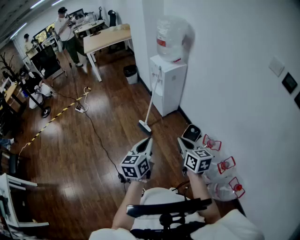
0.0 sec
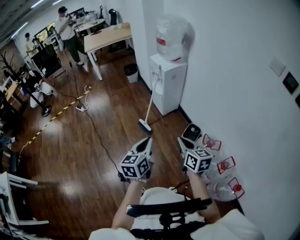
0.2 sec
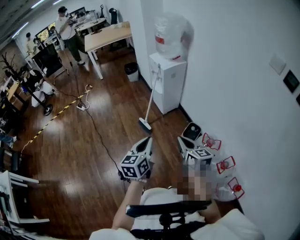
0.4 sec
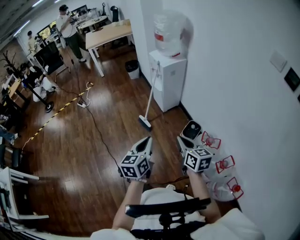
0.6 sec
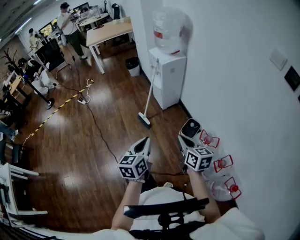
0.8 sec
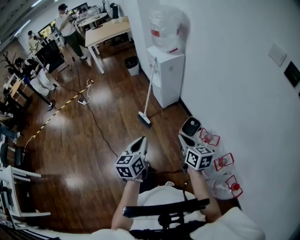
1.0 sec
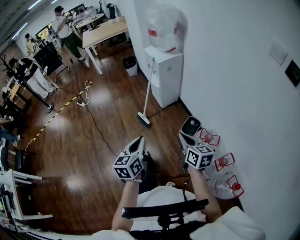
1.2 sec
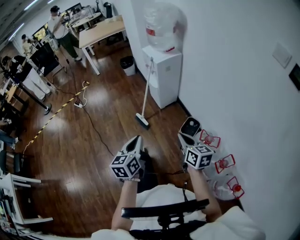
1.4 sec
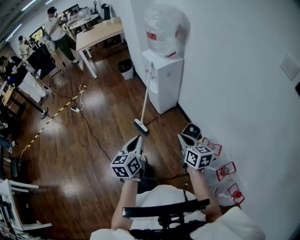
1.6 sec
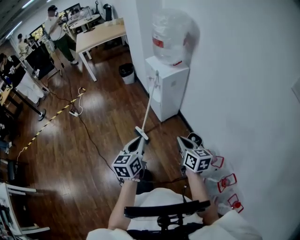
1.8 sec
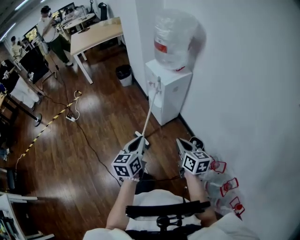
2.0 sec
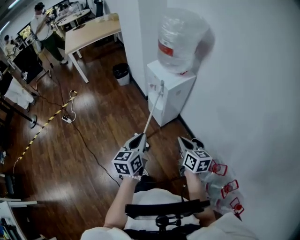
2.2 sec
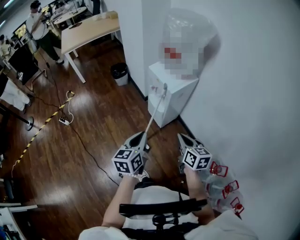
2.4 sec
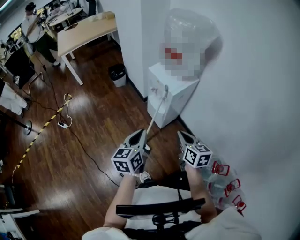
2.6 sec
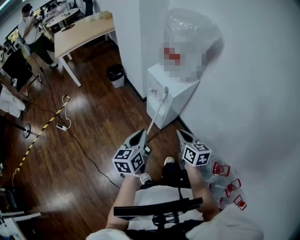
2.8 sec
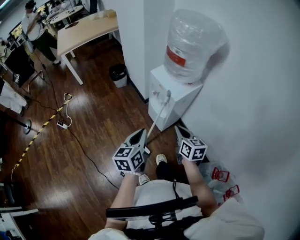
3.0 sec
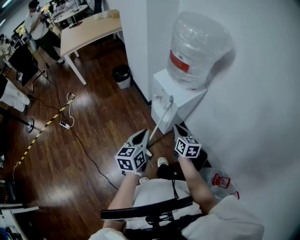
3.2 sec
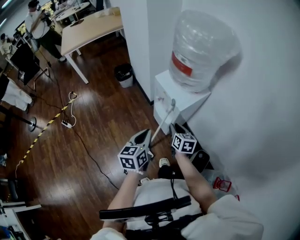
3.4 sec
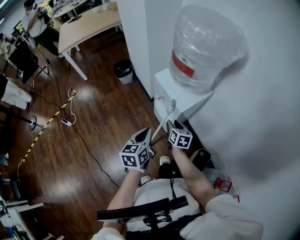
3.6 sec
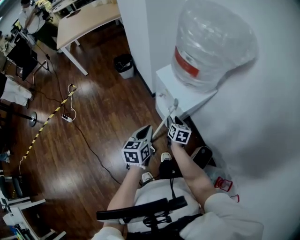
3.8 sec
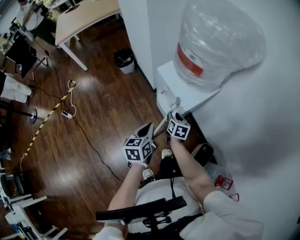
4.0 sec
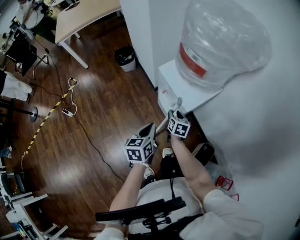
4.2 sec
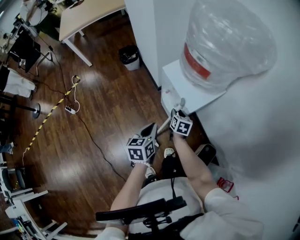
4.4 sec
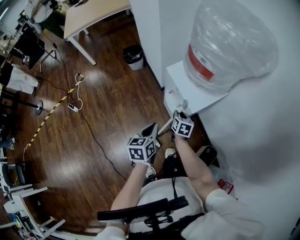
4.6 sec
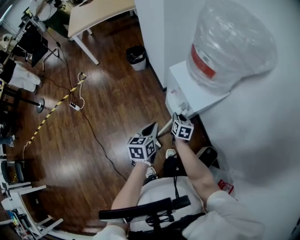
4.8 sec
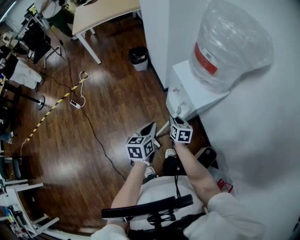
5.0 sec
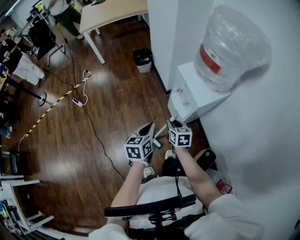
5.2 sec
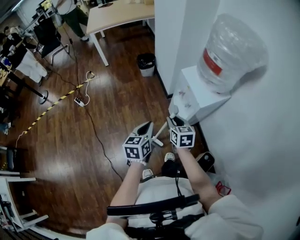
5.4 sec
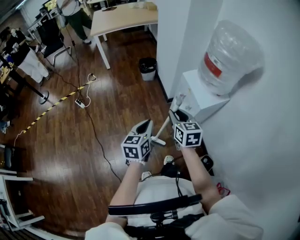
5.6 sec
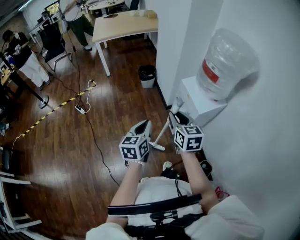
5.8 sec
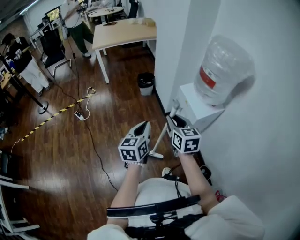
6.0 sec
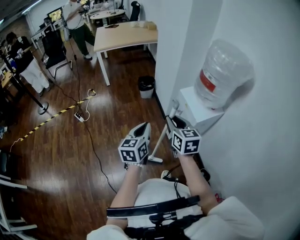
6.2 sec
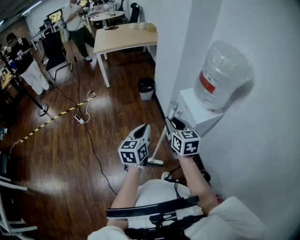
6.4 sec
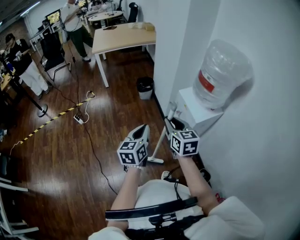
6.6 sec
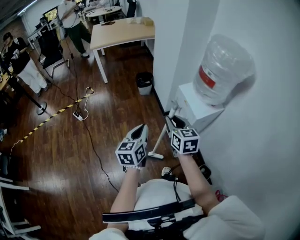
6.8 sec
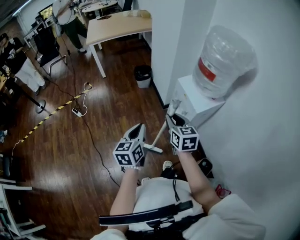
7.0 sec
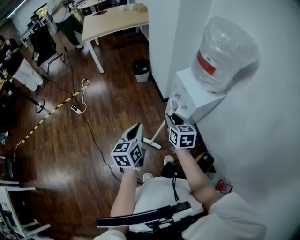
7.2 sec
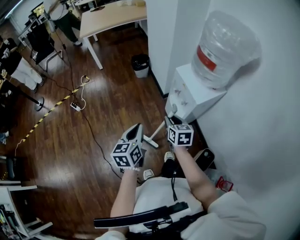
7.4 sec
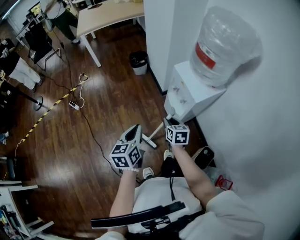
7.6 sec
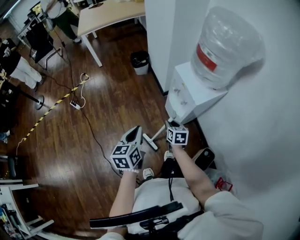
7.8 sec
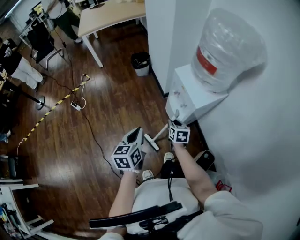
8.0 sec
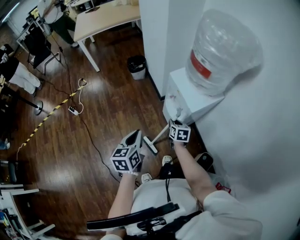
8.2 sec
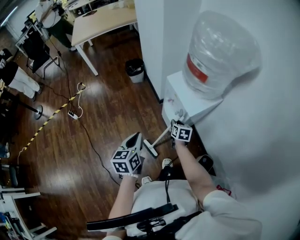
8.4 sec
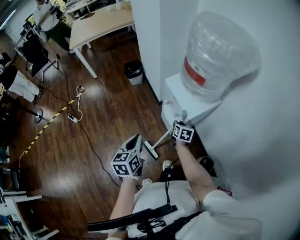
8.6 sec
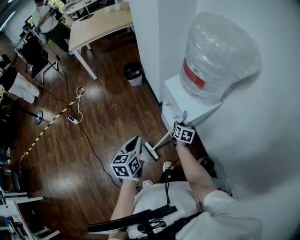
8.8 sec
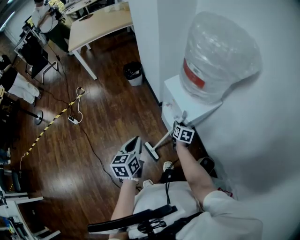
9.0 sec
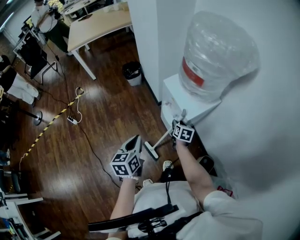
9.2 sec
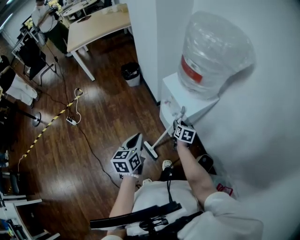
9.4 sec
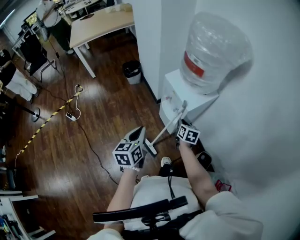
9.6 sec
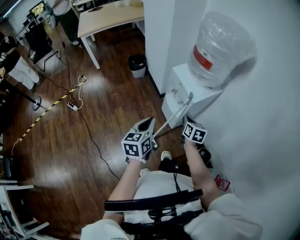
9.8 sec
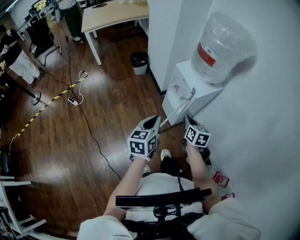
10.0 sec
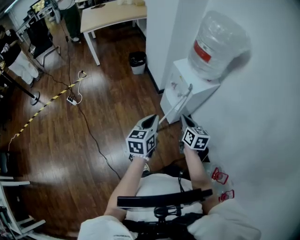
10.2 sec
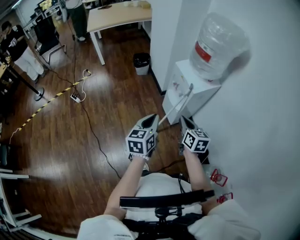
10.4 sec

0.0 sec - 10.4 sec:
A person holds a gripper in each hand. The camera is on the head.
0.0 sec - 1.4 sec: The right gripper shifts some 10 cm to the right; the left gripper moves approximately 5 cm.
1.4 sec - 3.0 sec: The pair of grippers is taken forward, roughly 50 cm.
3.0 sec - 4.4 sec: The left gripper goes approximately 20 cm forward and downward. The right gripper goes roughly 30 cm forward and downward, rotates approximately 20 degrees, and opens its fingers.
4.4 sec - 6.0 sec: The left gripper shifts some 25 cm upward, to the left and backward, and changes its angle by approximately 20 degrees. Meanwhile the right gripper moves upward, to the left and backward, roughly 40 cm, and changes its angle by approximately 40 degrees.
6.0 sec - 7.4 sec: The right gripper shifts some 15 cm downward. Meanwhile the left gripper is displaced downward by approximately 5 cm.
7.4 sec - 9.0 sec: The left gripper travels forward and to the right by some 10 cm; the right gripper travels downward, to the right and forward by roughly 25 cm, and turns by approximately 20 degrees.
9.0 sec - 10.4 sec: The left gripper heads backward and upward, covering approximately 15 cm; the right gripper moves backward and upward, approximately 35 cm, rotates approximately 20 degrees, and closes.

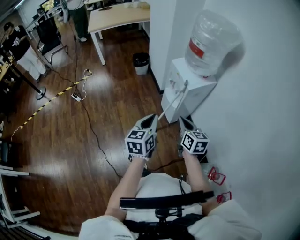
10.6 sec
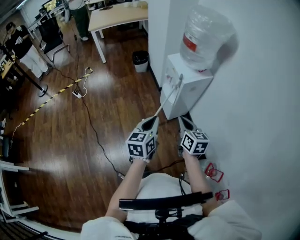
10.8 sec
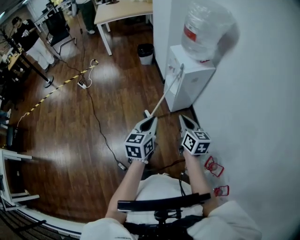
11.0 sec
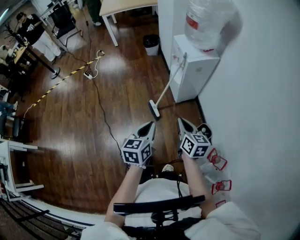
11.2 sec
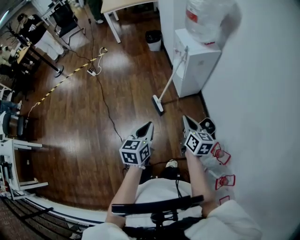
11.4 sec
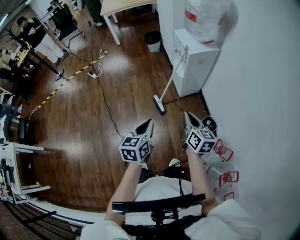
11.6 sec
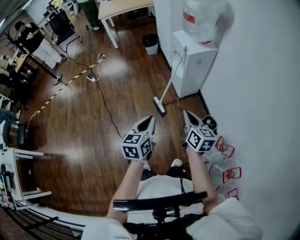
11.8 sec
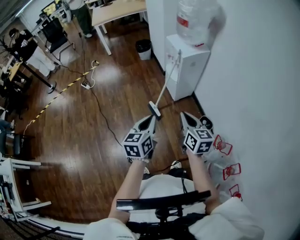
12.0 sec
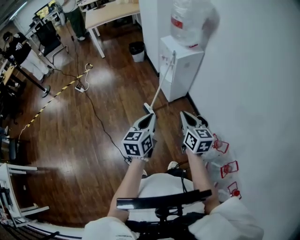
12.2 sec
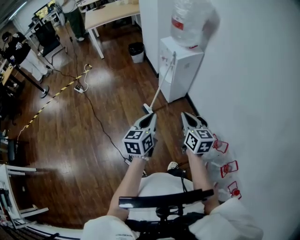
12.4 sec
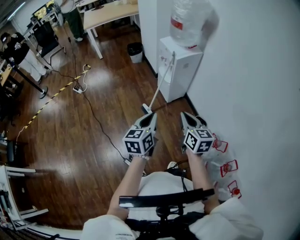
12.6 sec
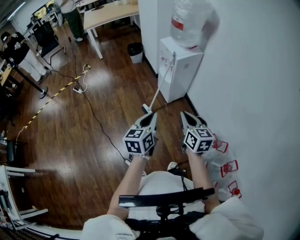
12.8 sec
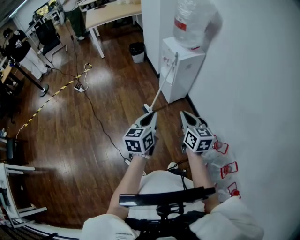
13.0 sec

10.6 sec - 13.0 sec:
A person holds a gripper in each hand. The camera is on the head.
10.6 sec - 11.8 sec: Both grippers move backward, some 25 cm.
11.8 sec - 13.0 sec: The right gripper shifts by some 5 cm.

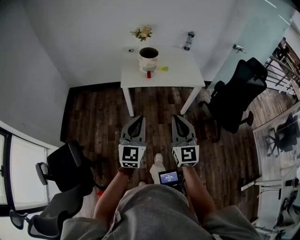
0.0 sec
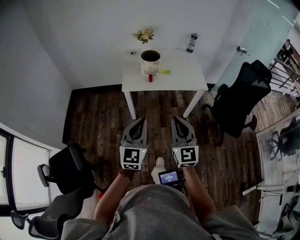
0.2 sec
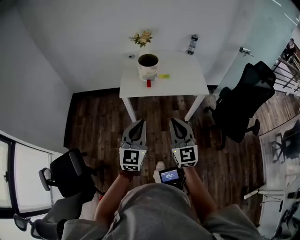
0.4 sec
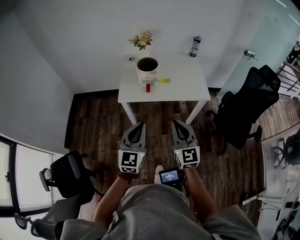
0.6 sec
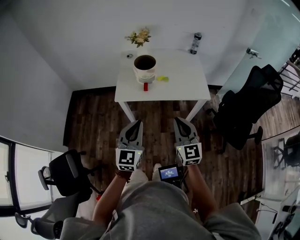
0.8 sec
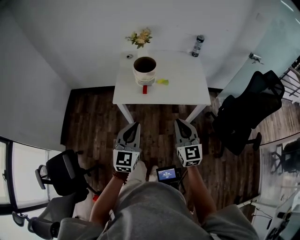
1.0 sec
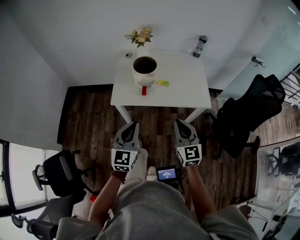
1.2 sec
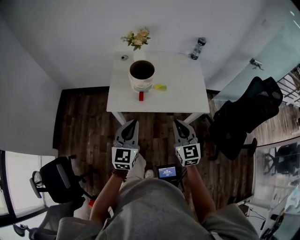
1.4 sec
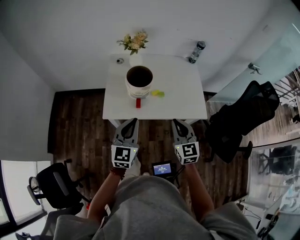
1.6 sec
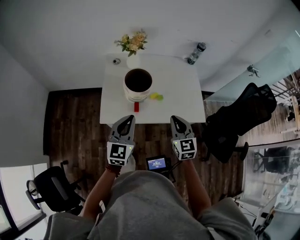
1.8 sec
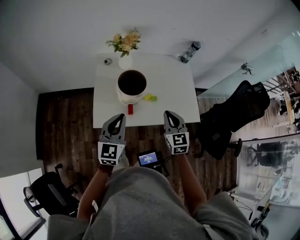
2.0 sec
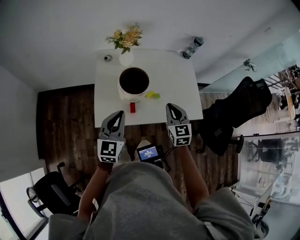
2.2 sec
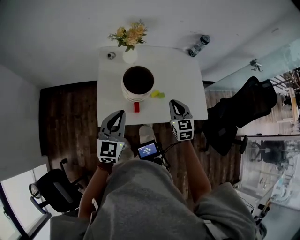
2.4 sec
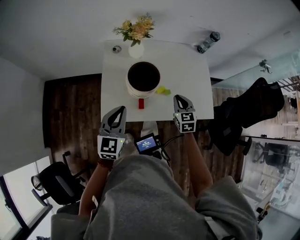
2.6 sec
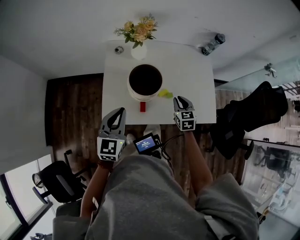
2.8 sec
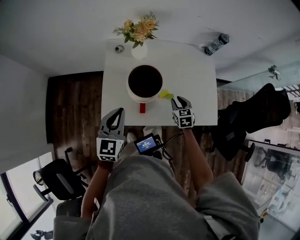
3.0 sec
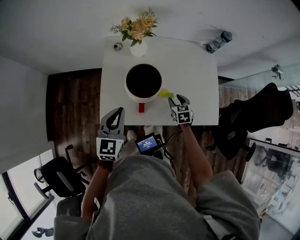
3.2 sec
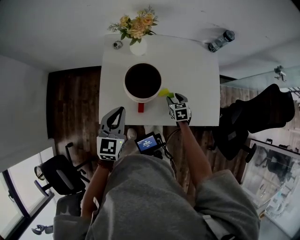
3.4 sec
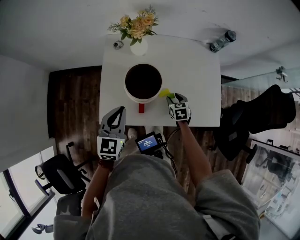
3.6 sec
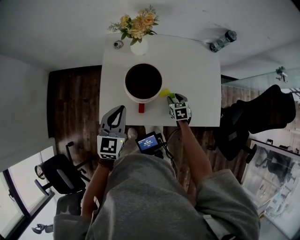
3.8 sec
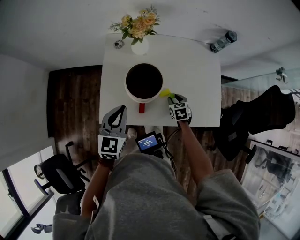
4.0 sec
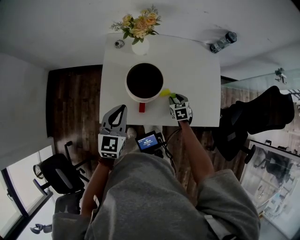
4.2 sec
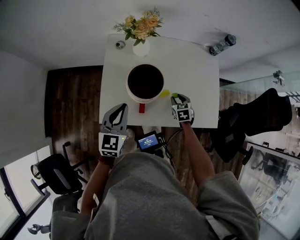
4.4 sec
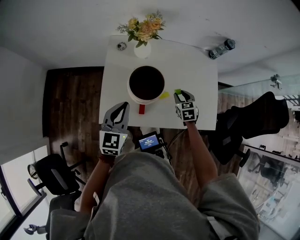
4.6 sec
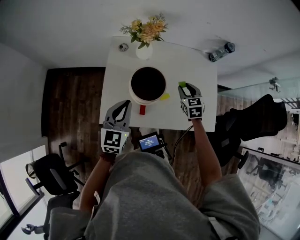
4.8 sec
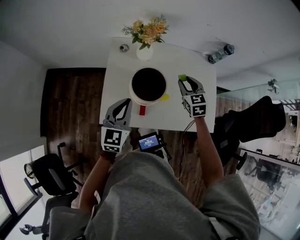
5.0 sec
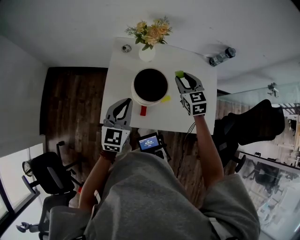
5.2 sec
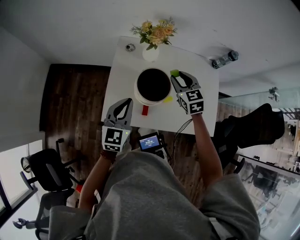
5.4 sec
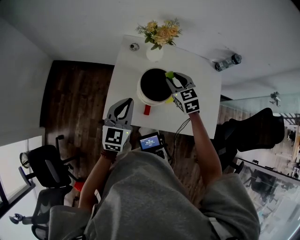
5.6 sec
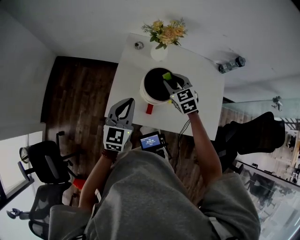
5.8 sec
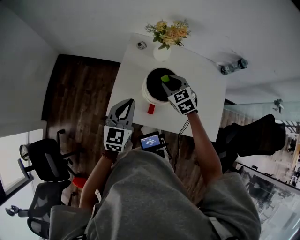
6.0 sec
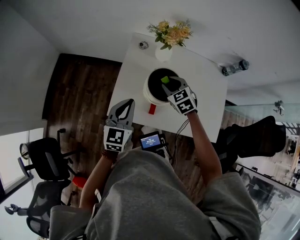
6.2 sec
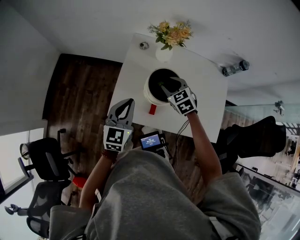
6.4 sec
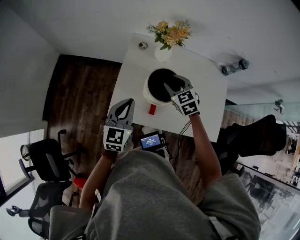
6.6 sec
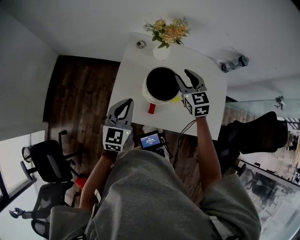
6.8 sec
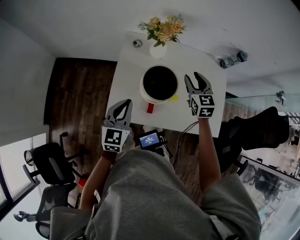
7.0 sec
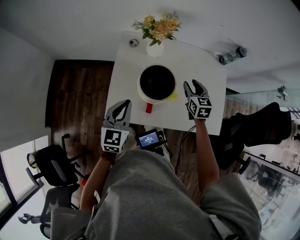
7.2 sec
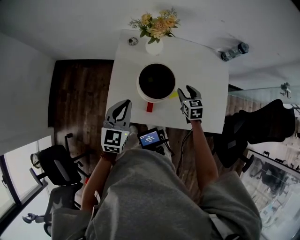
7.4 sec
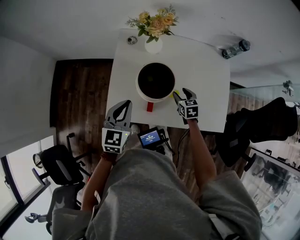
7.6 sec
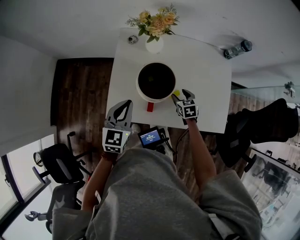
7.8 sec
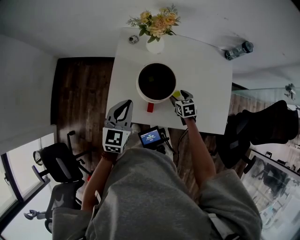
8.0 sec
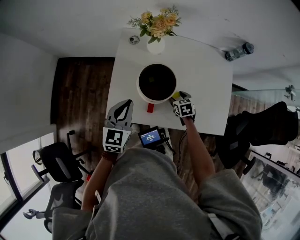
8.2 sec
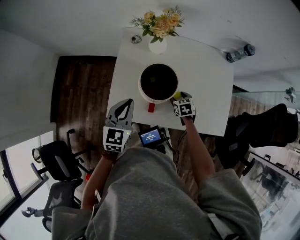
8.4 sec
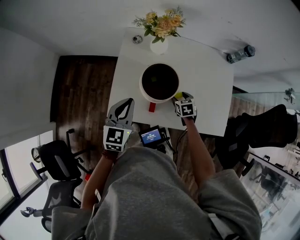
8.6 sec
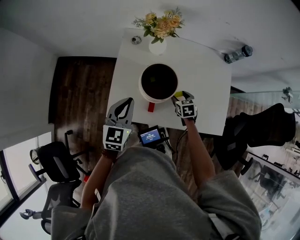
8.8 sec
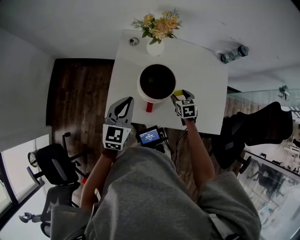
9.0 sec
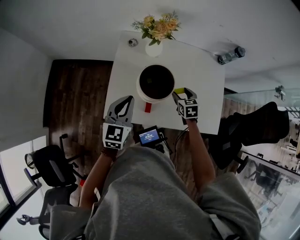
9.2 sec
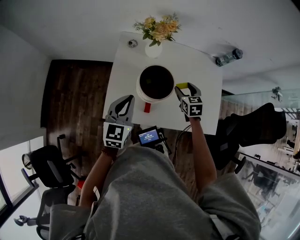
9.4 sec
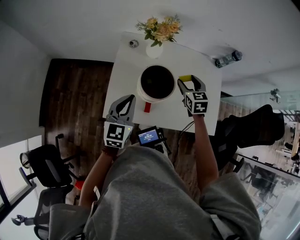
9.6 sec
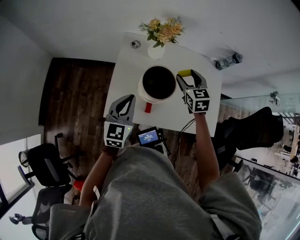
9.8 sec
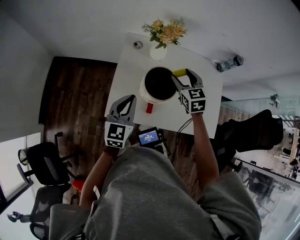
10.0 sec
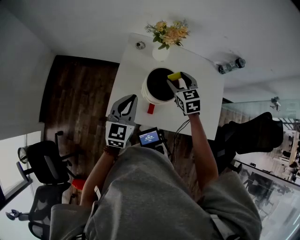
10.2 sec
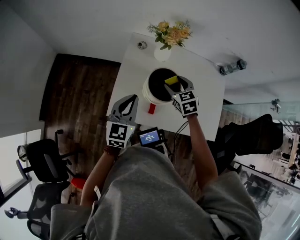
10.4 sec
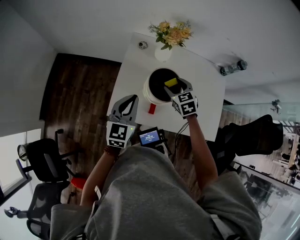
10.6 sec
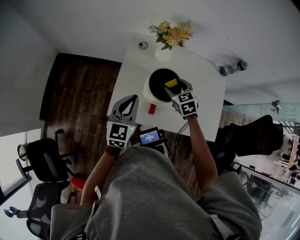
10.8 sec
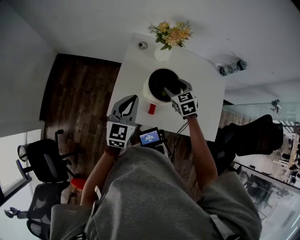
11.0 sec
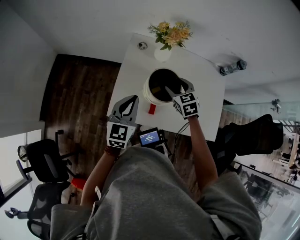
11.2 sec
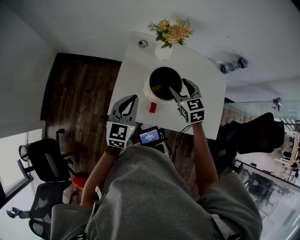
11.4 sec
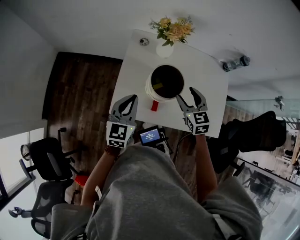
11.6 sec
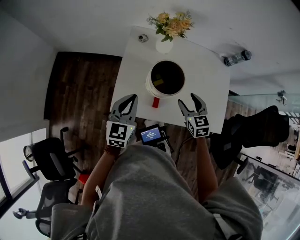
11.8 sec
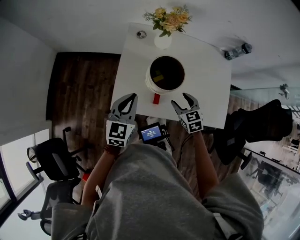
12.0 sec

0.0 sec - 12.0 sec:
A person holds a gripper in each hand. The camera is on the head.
0.0 sec - 1.6 sec: Both grippers travel together forward, about 40 cm.
1.6 sec - 3.0 sec: The right gripper heads forward and downward, covering some 35 cm, swivels some 30 degrees, and opens its fingers; the left gripper shifts approximately 20 cm forward, to the left and downward.
3.0 sec - 4.4 sec: The right gripper shifts some 5 cm downward.
4.4 sec - 6.0 sec: The right gripper goes about 25 cm to the left and upward, and changes its angle by approximately 40 degrees.
6.0 sec - 7.6 sec: The right gripper goes approximately 20 cm downward and to the right, and changes its angle by approximately 30 degrees.
9.0 sec - 10.4 sec: The right gripper goes about 20 cm upward and to the left, and turns by some 20 degrees.
10.4 sec - 12.0 sec: The right gripper shifts about 15 cm backward and downward.
